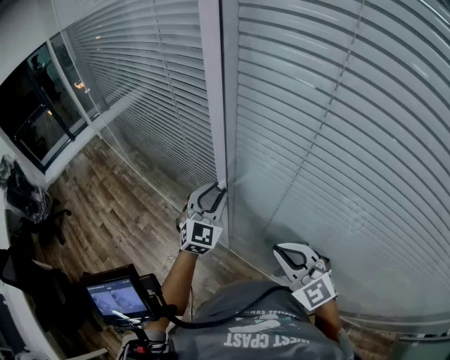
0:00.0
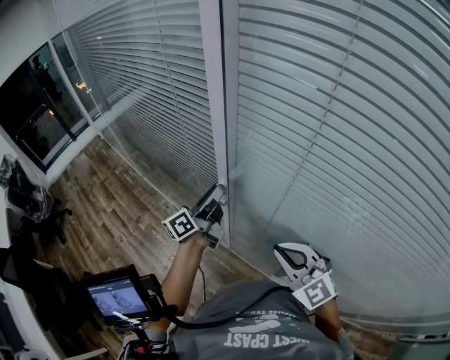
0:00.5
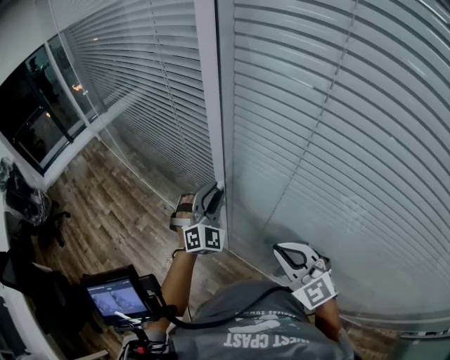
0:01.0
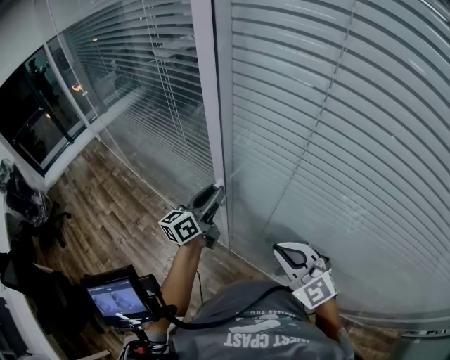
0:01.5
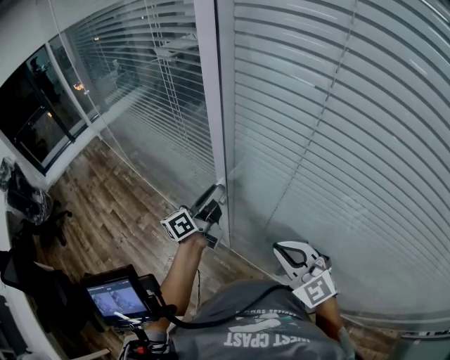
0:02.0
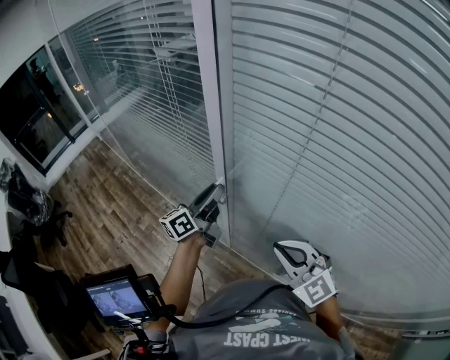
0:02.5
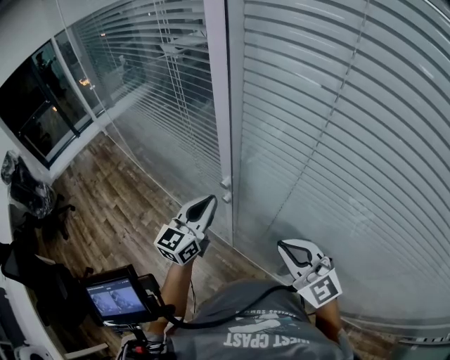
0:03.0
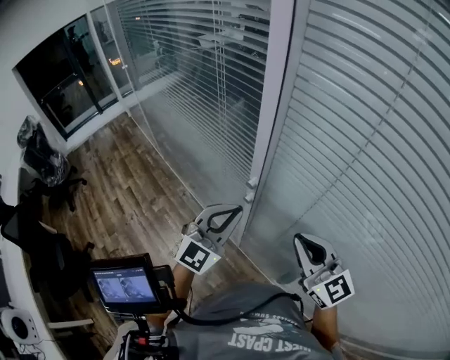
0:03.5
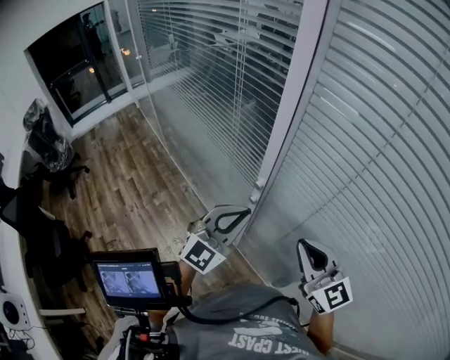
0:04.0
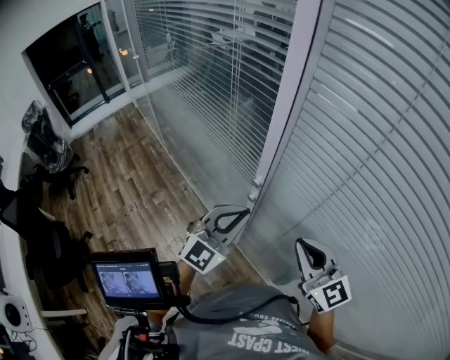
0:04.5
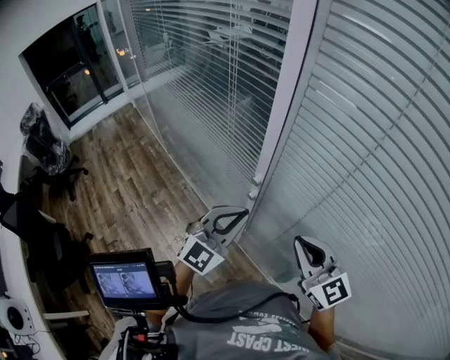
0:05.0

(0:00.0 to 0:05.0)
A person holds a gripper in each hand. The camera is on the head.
0:00.0 - 0:02.5: The left gripper rolls counterclockwise, seen from behind, by some 70 degrees.
0:02.5 - 0:05.0: The right gripper shifts by roughly 5 cm, and swivels some 20 degrees. Meanwhile the left gripper is displaced backward by about 10 cm, twists roughly 70 degrees clockwise, seen from behind, and closes its fingers.

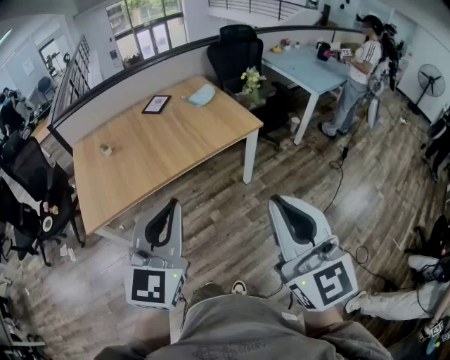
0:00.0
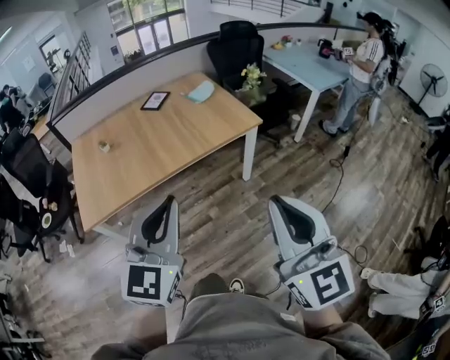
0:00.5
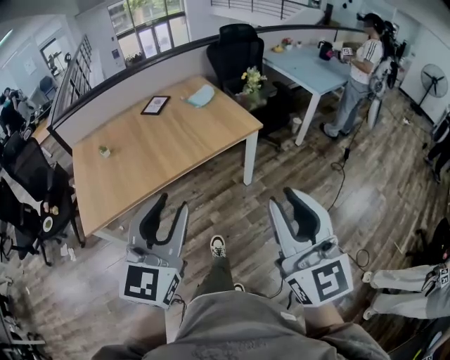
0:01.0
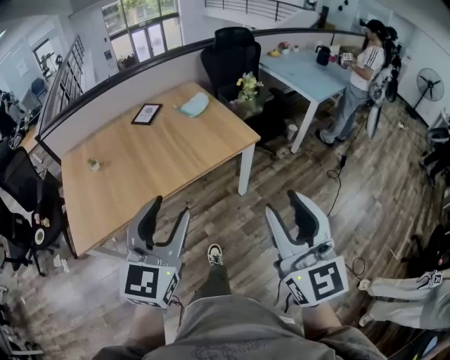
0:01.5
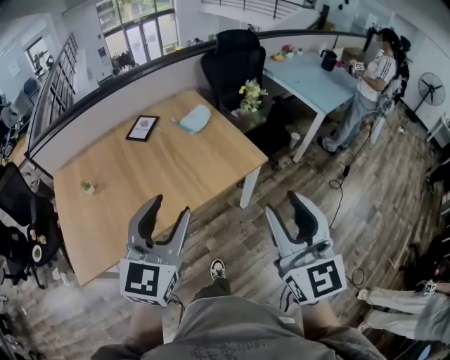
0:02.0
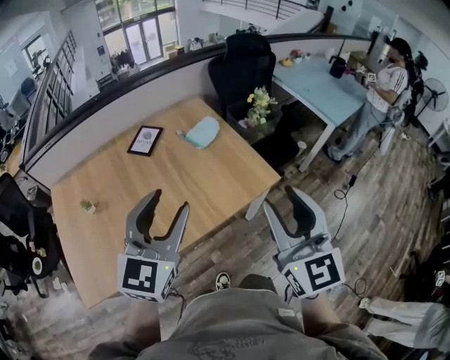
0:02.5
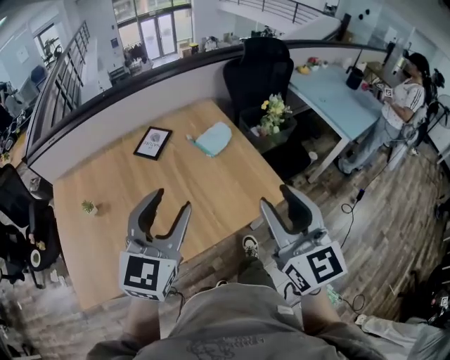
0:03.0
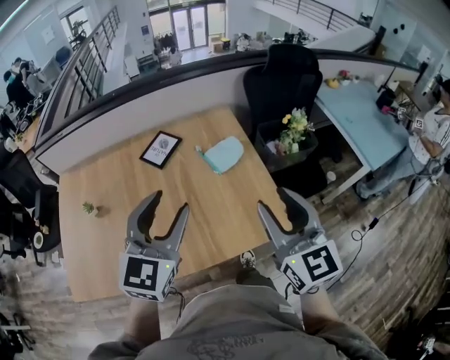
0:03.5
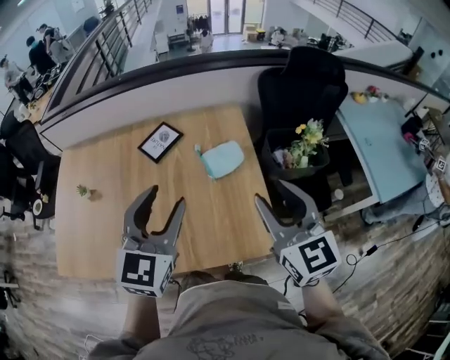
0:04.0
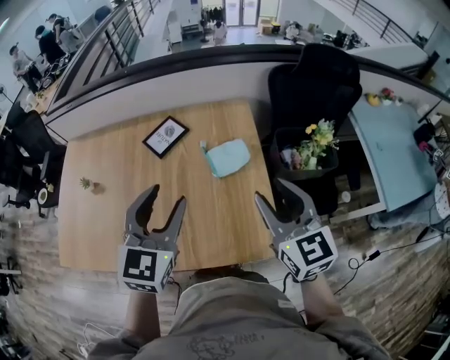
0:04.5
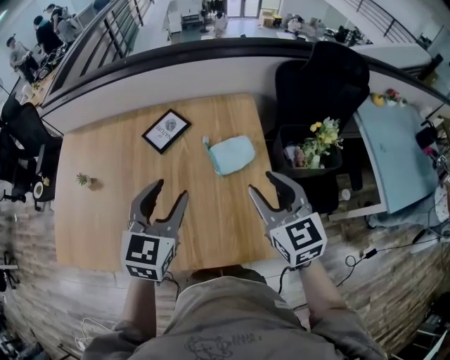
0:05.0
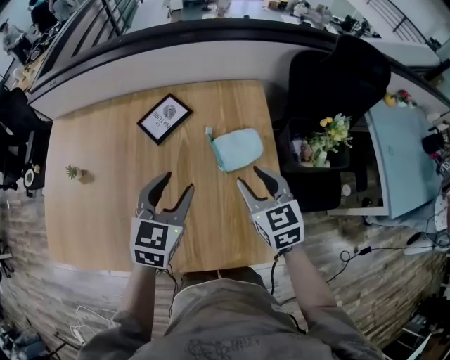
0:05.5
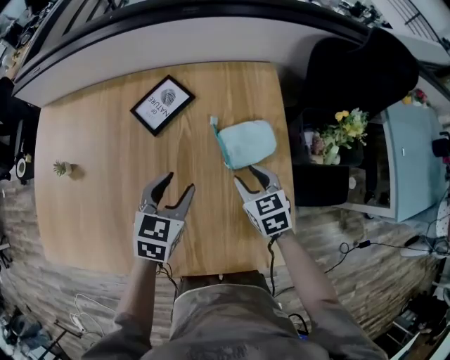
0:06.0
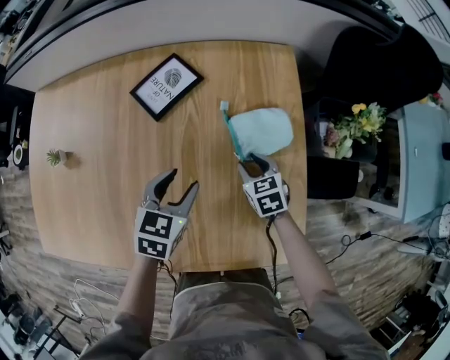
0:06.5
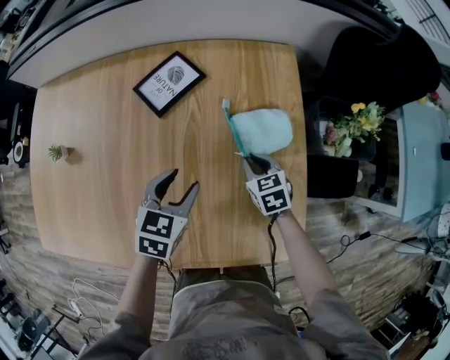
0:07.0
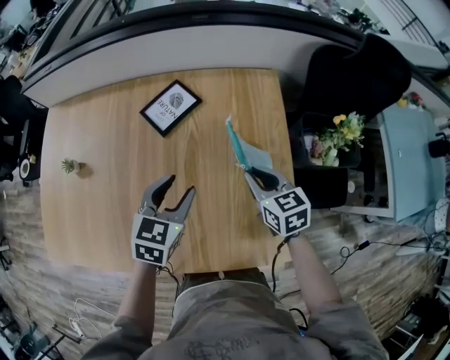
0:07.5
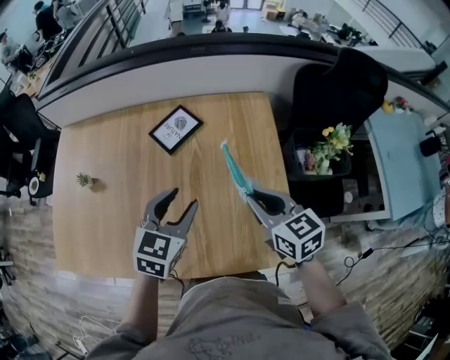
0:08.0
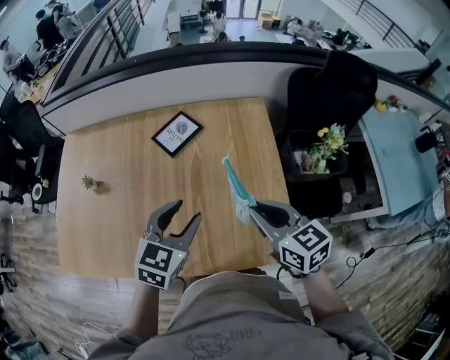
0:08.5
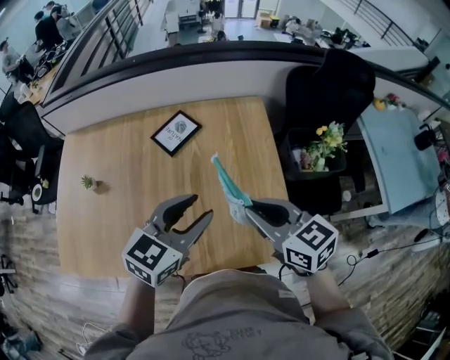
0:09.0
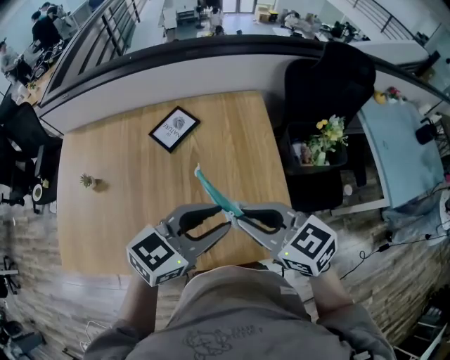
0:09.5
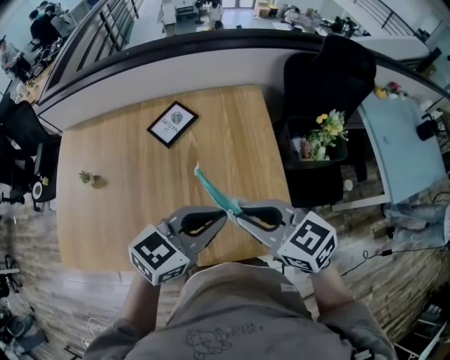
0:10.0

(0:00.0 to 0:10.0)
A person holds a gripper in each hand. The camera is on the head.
0:00.0 - 0:02.0: The two grippers go approximately 30 cm forward. The left gripper opens. The right gripper opens up.
0:02.0 - 0:04.0: The left gripper changes place by some 40 cm, and swivels some 30 degrees; the right gripper shifts by roughly 50 cm, and rotates approximately 30 degrees.
0:04.0 - 0:06.0: Both grippers move downward and forward, roughly 35 cm. The left gripper swivels approximately 30 degrees. The right gripper points its fingers some 30 degrees further downward.
0:06.0 - 0:08.0: The two grippers go roughly 15 cm upward and backward. The right gripper closes its fingers.
0:08.0 - 0:10.0: The left gripper moves backward, to the right and upward, roughly 15 cm, changes its angle by approximately 30 degrees, and closes up; the right gripper is displaced backward and upward by some 10 cm.

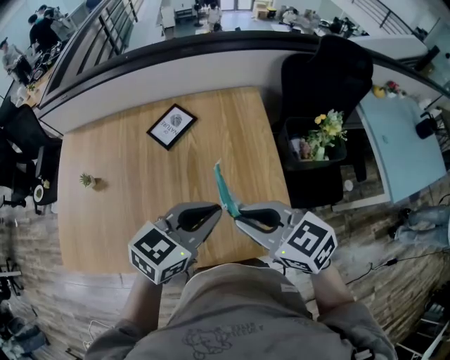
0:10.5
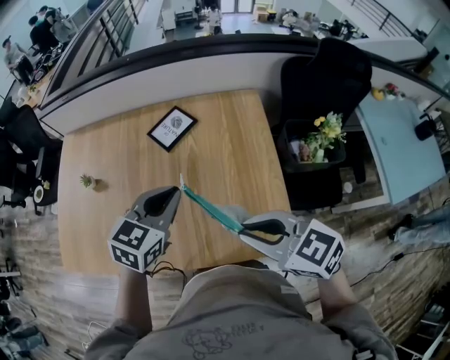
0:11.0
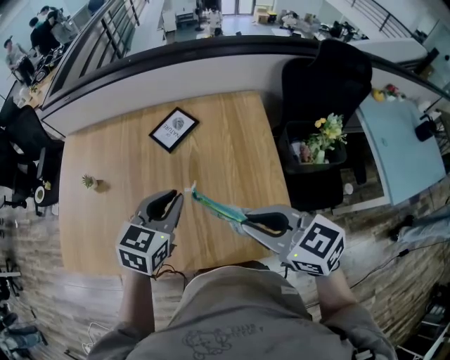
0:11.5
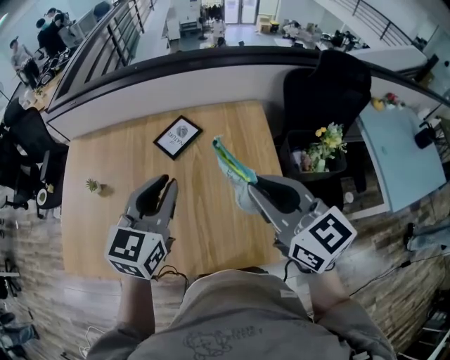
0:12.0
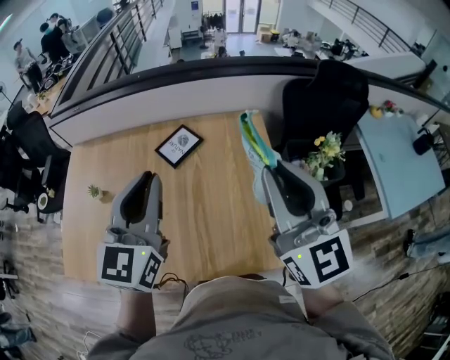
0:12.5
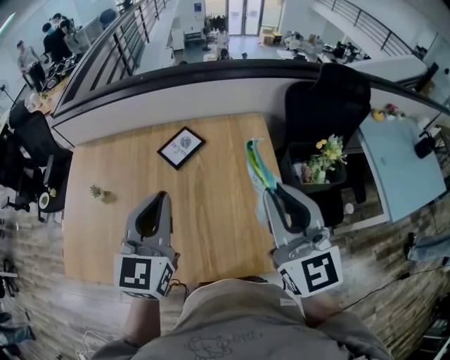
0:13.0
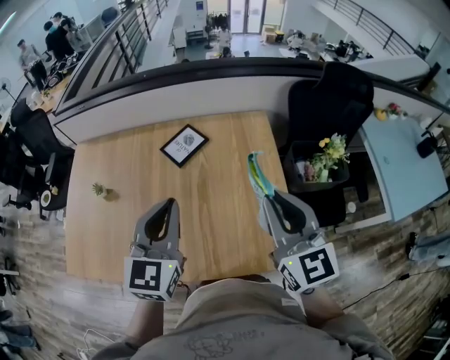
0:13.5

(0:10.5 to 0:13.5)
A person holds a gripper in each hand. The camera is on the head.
0:10.5 - 0:12.0: The right gripper shifts some 10 cm upward and forward, and swivels approximately 30 degrees, while the left gripper is displaced to the left, forward and upward by some 15 cm, and swivels about 30 degrees.
0:12.0 - 0:13.5: The left gripper travels upward and back again, approximately 10 cm each way; the right gripper goes upward and returns, some 10 cm each way, and turns by some 20 degrees.

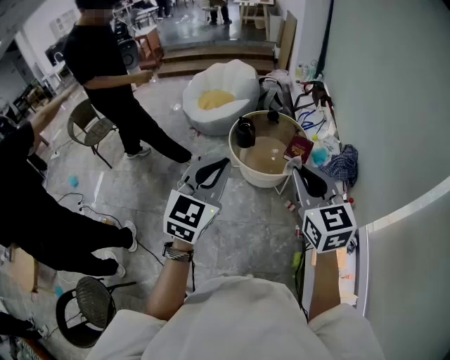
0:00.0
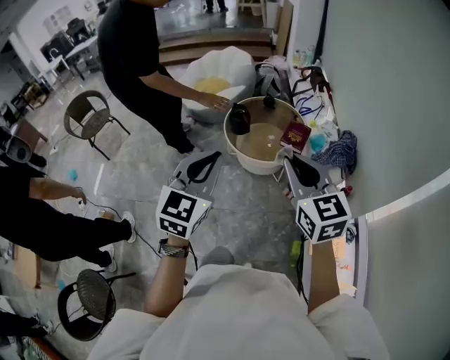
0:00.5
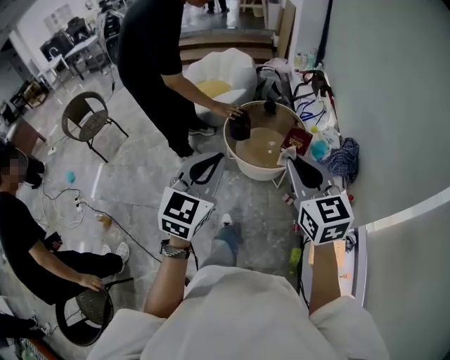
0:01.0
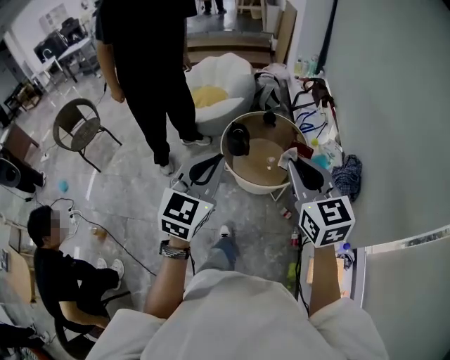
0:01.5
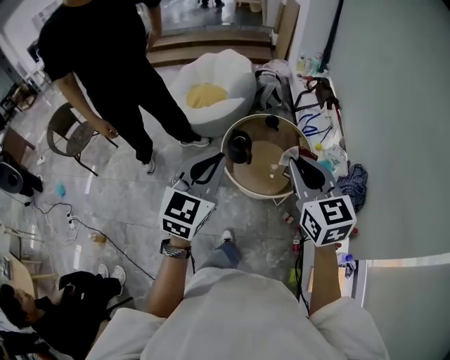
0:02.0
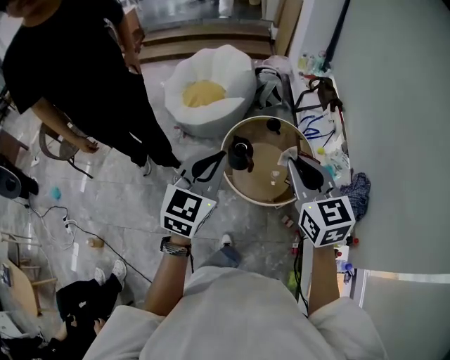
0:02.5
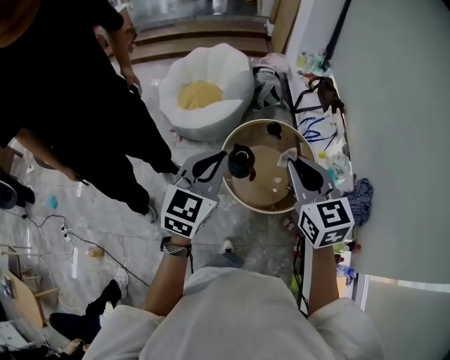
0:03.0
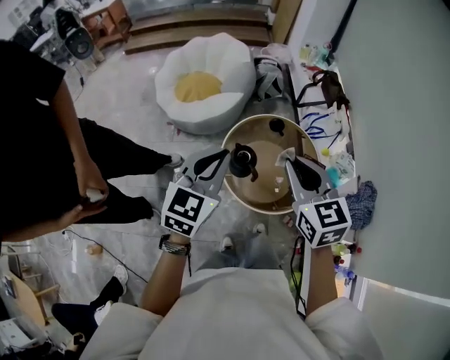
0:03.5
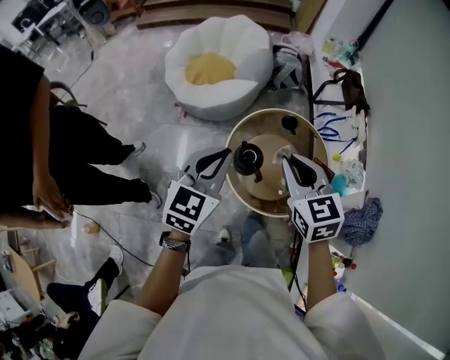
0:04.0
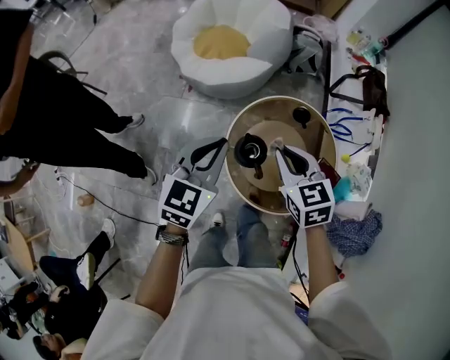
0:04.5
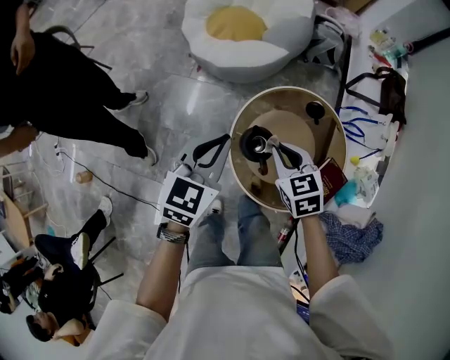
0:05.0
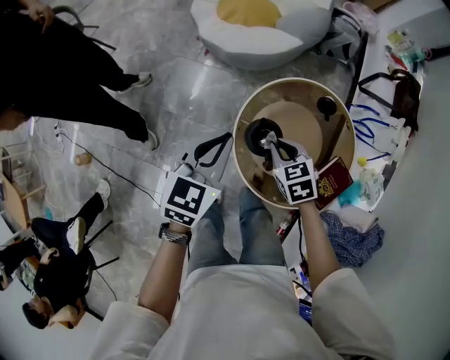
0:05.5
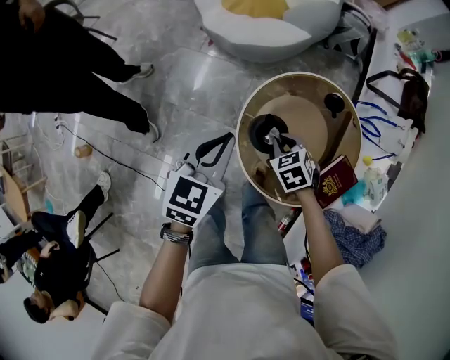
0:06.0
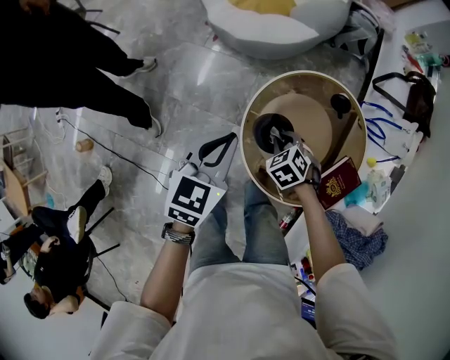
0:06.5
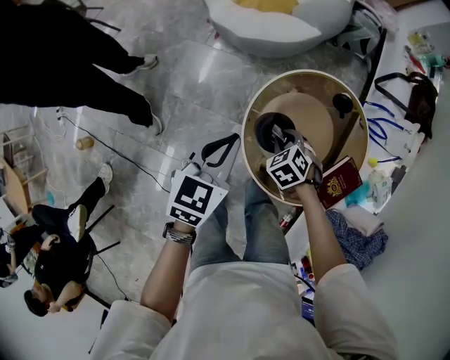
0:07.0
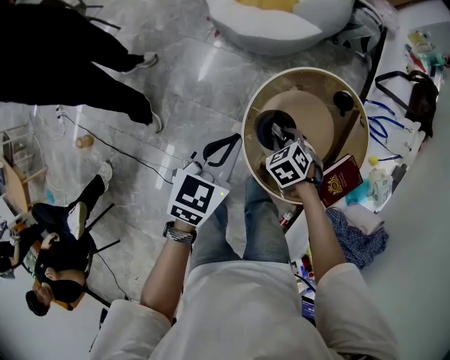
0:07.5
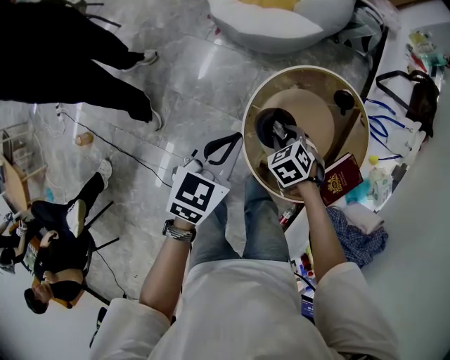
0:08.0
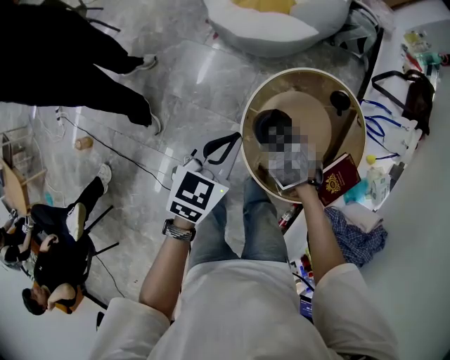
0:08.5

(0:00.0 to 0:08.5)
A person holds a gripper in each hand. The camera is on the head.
0:00.0 - 0:02.0: The grippers both shift forward by about 30 cm.
0:02.0 - 0:04.0: The right gripper heads forward and downward, covering some 30 cm, while the left gripper travels forward by about 30 cm.
0:04.0 - 0:06.5: The left gripper shifts roughly 20 cm downward, and changes its angle by approximately 30 degrees. The right gripper moves downward, roughly 40 cm, and tips its fingers downward by approximately 40 degrees.
0:06.5 - 0:08.5: The grippers make only small movements.
